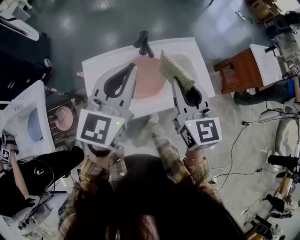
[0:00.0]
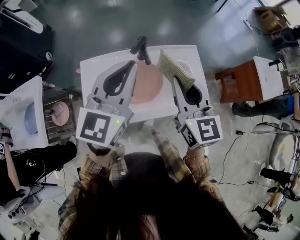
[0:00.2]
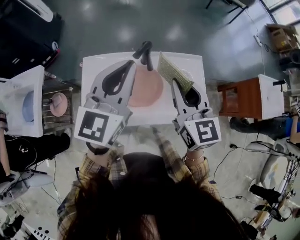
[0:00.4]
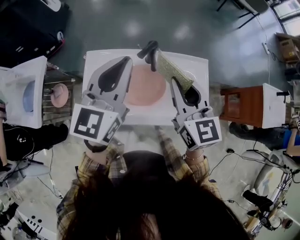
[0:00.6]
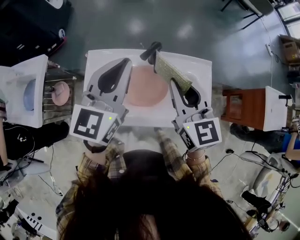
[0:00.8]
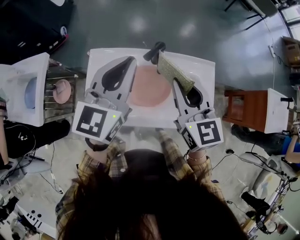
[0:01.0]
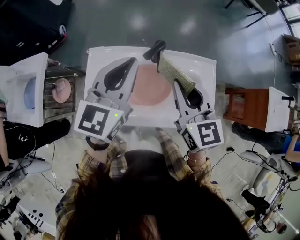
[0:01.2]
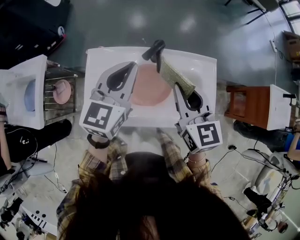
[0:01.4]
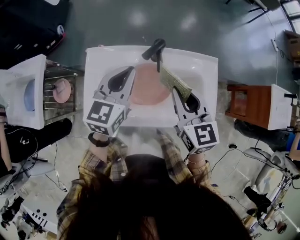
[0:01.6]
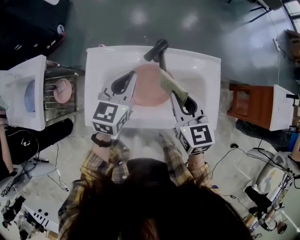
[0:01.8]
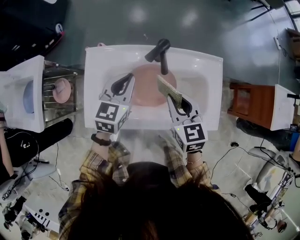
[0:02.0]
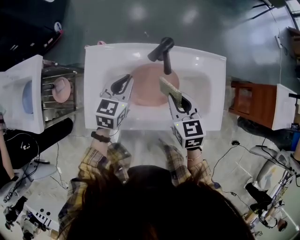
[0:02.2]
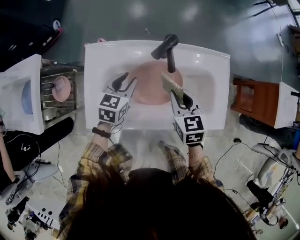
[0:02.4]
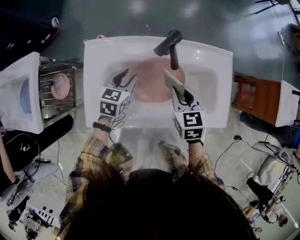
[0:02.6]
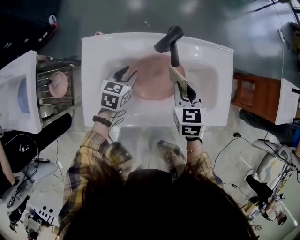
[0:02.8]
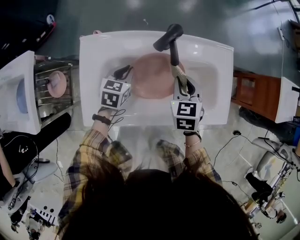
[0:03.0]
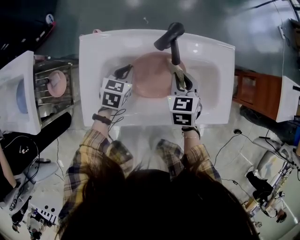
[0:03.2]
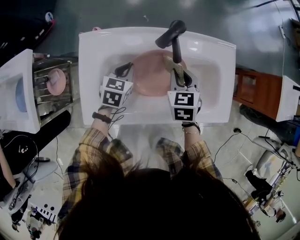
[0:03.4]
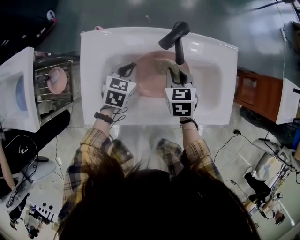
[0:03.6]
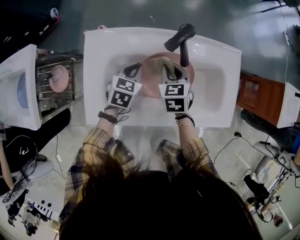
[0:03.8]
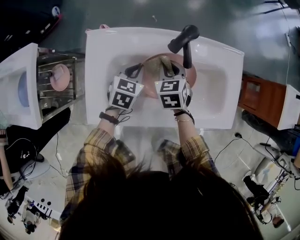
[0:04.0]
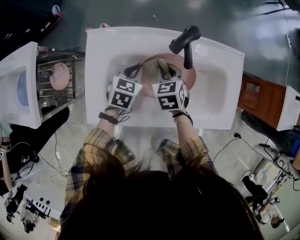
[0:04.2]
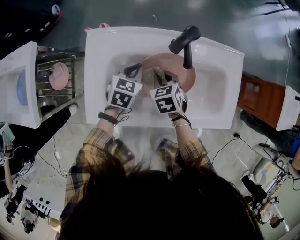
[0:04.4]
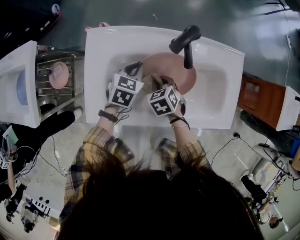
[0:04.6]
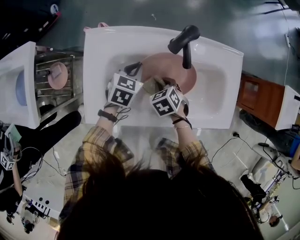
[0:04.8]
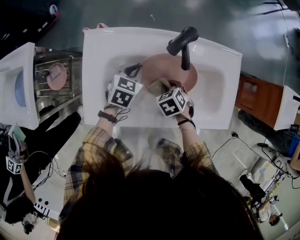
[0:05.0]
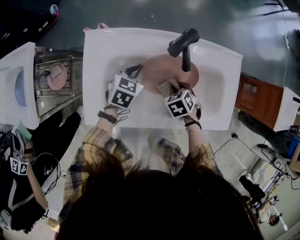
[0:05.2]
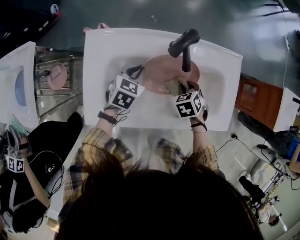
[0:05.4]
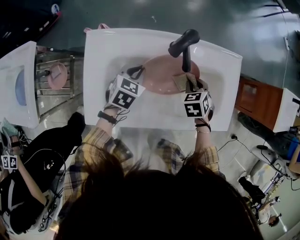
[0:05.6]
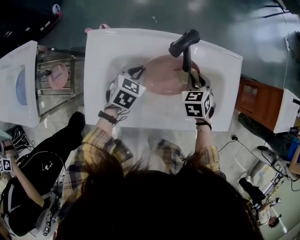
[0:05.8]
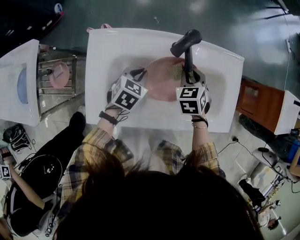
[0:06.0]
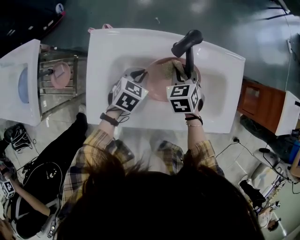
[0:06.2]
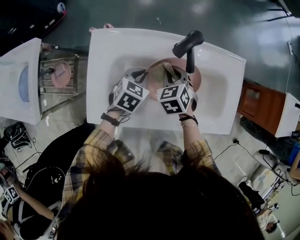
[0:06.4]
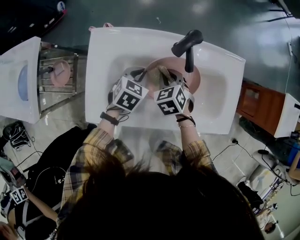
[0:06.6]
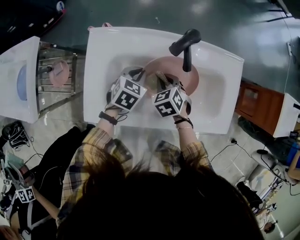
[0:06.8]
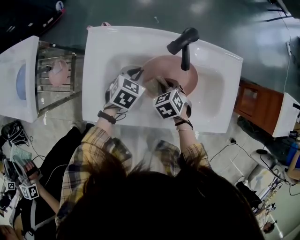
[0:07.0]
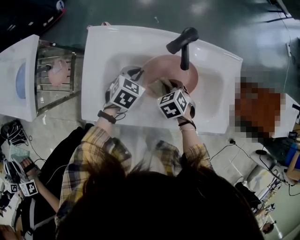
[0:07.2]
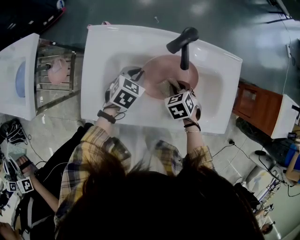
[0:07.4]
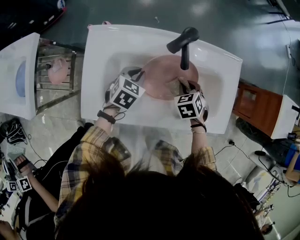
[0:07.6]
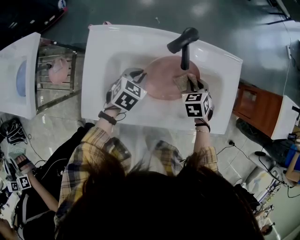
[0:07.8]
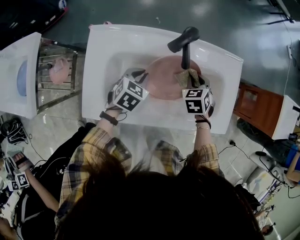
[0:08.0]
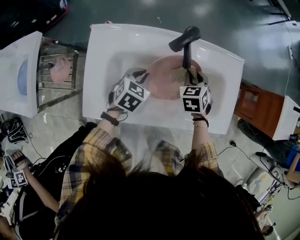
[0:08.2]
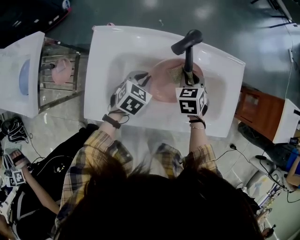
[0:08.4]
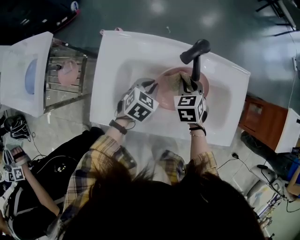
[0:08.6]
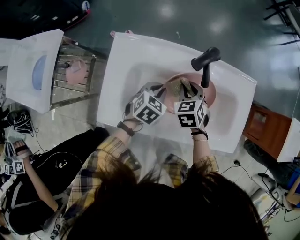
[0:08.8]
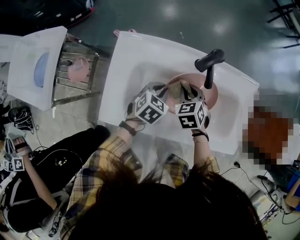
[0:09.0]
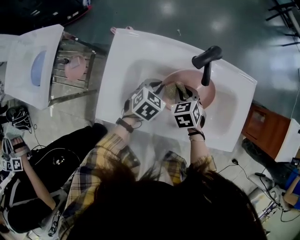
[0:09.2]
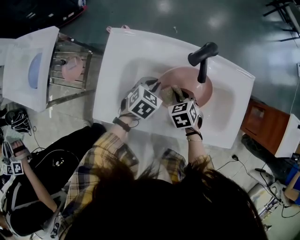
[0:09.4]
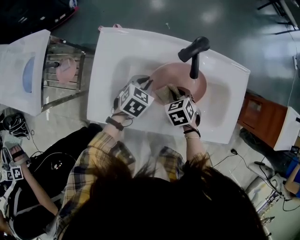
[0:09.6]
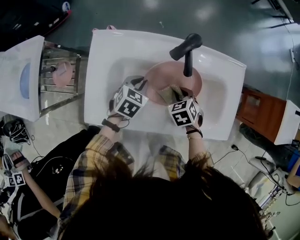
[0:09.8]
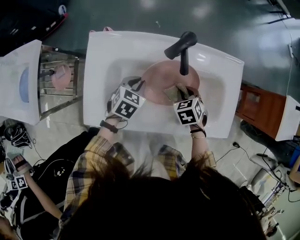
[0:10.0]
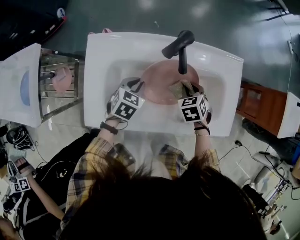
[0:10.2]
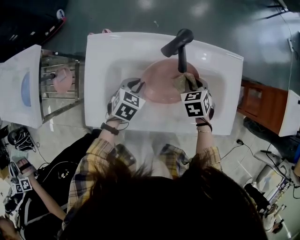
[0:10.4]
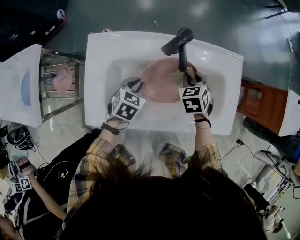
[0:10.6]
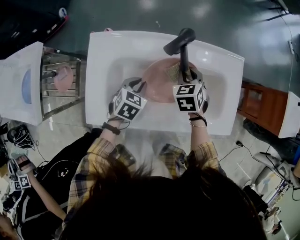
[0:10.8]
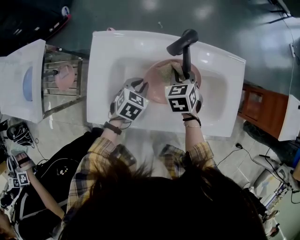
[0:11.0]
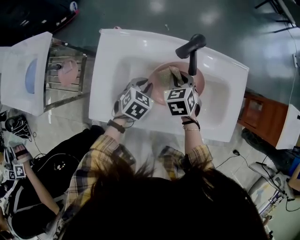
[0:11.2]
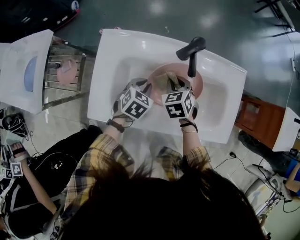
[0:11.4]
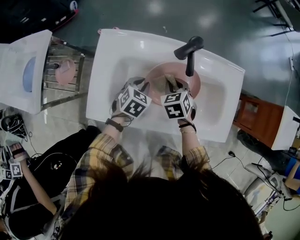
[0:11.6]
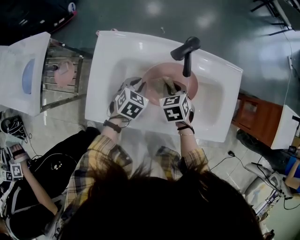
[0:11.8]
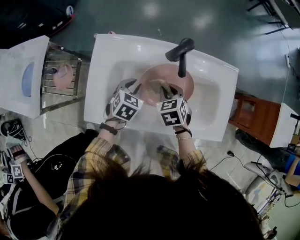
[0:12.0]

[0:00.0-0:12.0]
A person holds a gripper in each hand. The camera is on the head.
0:00.0 to 0:01.6: The left gripper shifts approximately 15 cm downward and forward, and changes its angle by some 20 degrees. Meanwhile the right gripper shifts some 15 cm forward and downward, and rotates approximately 20 degrees.
0:01.6 to 0:03.0: The two grippers go about 20 cm downward. The right gripper rotates about 30 degrees; the left gripper rotates roughly 30 degrees, and opens, then closes once more.
0:03.0 to 0:04.4: The right gripper travels to the left and downward by about 15 cm, and swivels about 20 degrees.
0:04.4 to 0:06.0: The right gripper shifts some 10 cm to the right and forward.
0:06.0 to 0:07.6: The right gripper is displaced downward and backward by some 10 cm, and travels to the left and back again, roughly 10 cm each way.
0:07.6 to 0:09.0: The right gripper moves to the left, approximately 10 cm.
0:09.0 to 0:10.4: The right gripper goes about 10 cm to the right.
0:10.4 to 0:12.0: The right gripper moves to the left, some 10 cm.

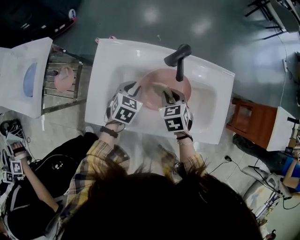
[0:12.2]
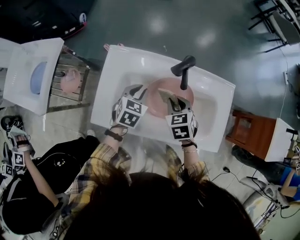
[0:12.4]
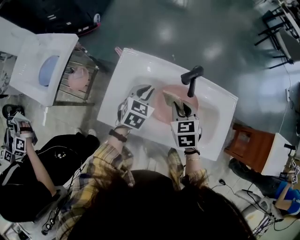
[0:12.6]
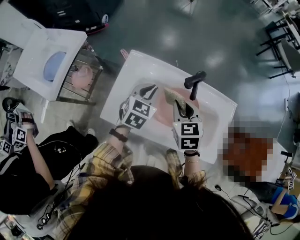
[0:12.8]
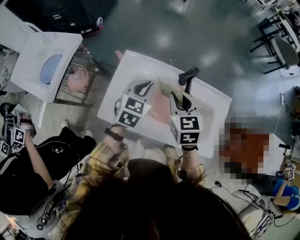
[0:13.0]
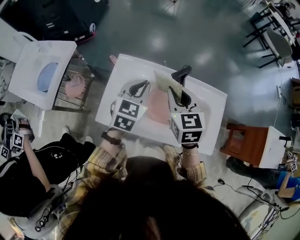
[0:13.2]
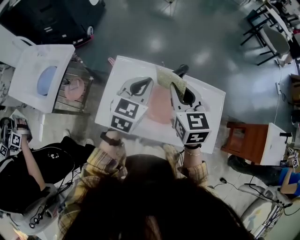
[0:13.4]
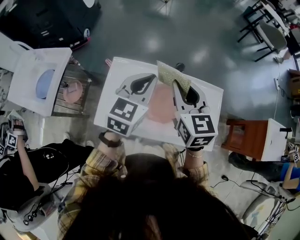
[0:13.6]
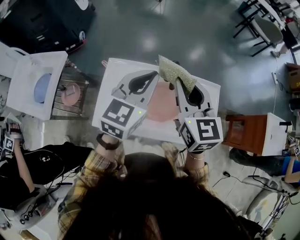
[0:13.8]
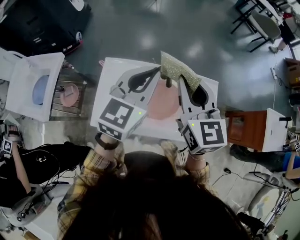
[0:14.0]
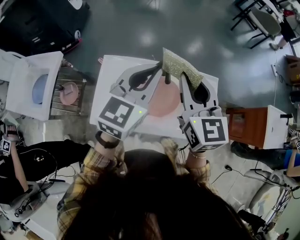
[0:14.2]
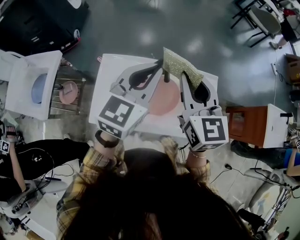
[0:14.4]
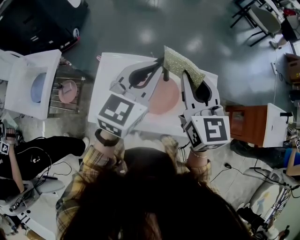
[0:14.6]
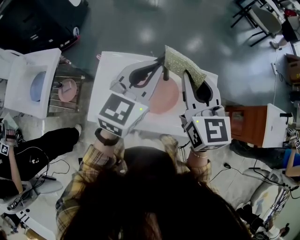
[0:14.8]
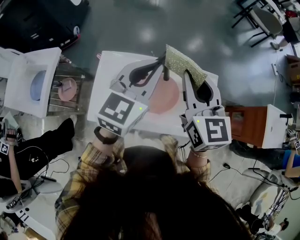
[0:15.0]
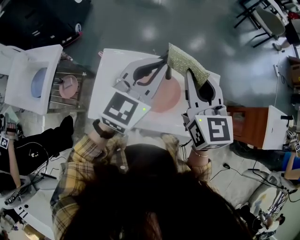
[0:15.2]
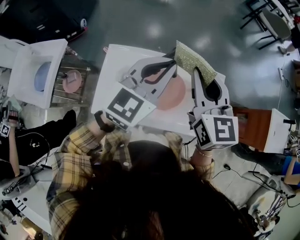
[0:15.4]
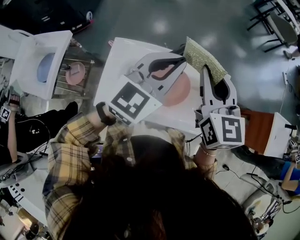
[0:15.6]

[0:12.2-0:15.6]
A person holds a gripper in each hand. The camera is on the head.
0:12.2 to 0:13.8: Both grippers travel together upward, about 30 cm. The left gripper points its fingers roughly 40 degrees further upward. The right gripper tilts its fingers roughly 40 degrees upward.
0:13.8 to 0:15.6: The two grippers go some 10 cm to the right.

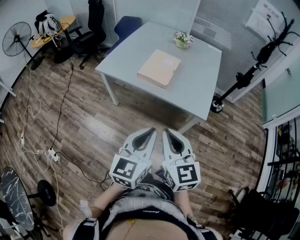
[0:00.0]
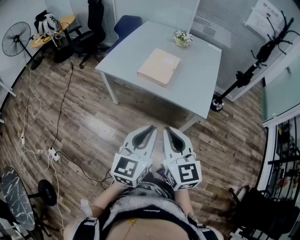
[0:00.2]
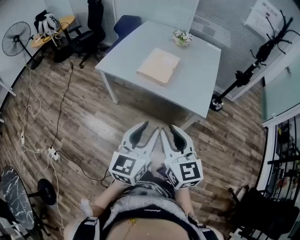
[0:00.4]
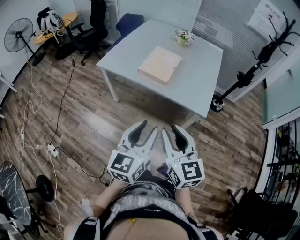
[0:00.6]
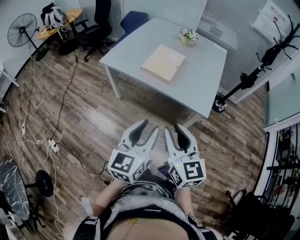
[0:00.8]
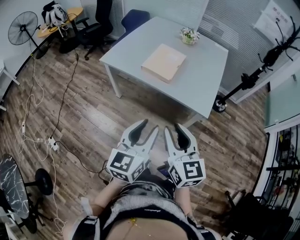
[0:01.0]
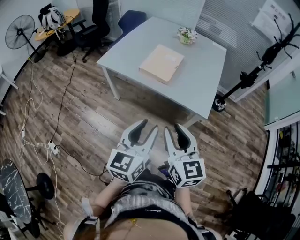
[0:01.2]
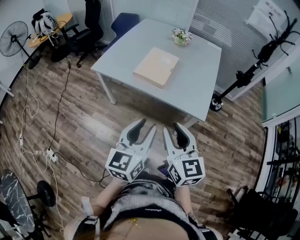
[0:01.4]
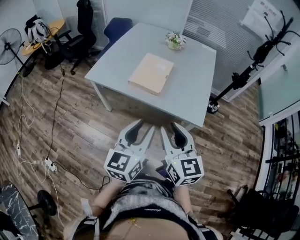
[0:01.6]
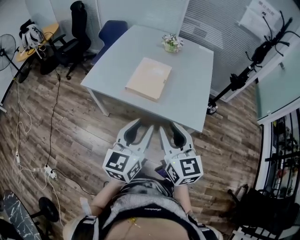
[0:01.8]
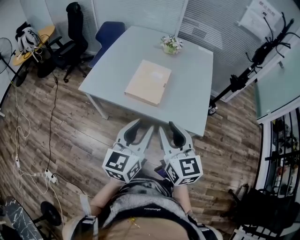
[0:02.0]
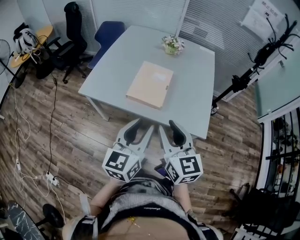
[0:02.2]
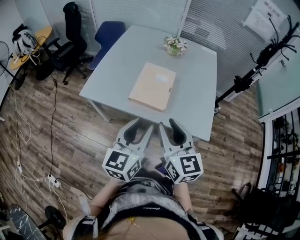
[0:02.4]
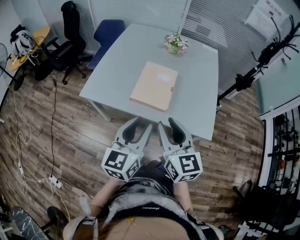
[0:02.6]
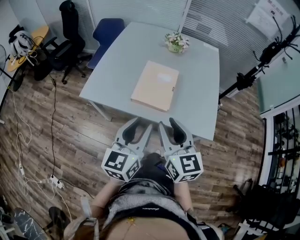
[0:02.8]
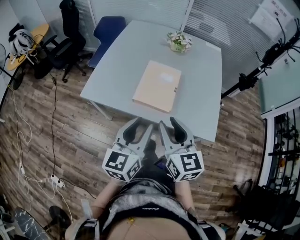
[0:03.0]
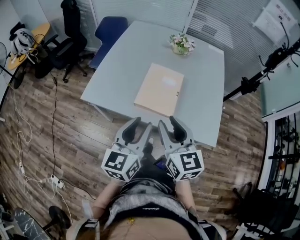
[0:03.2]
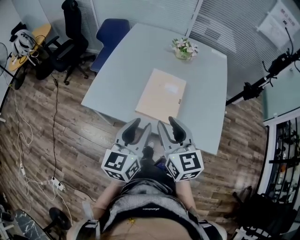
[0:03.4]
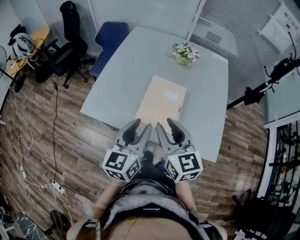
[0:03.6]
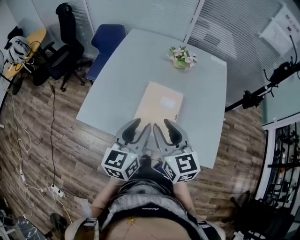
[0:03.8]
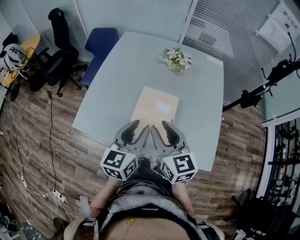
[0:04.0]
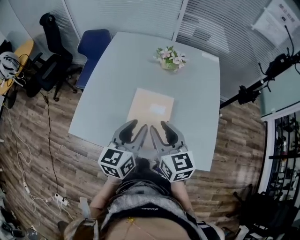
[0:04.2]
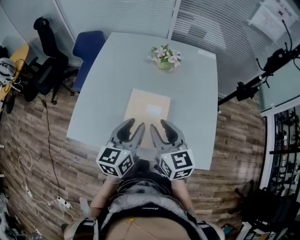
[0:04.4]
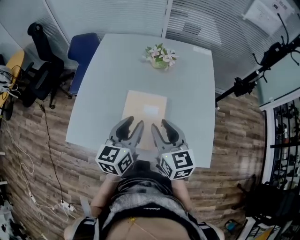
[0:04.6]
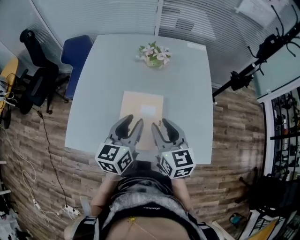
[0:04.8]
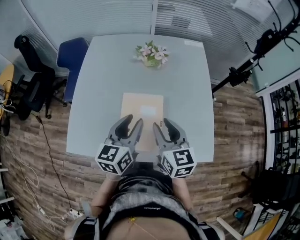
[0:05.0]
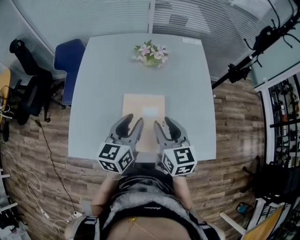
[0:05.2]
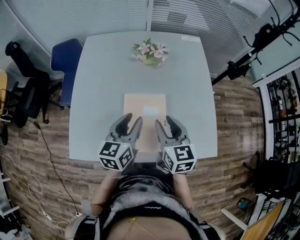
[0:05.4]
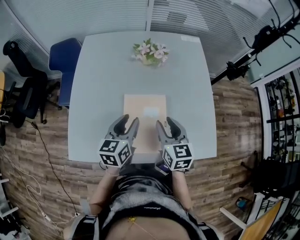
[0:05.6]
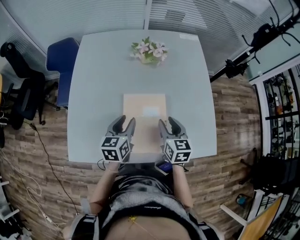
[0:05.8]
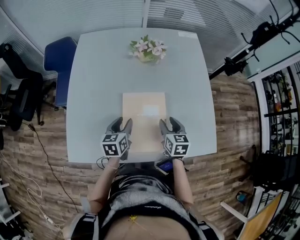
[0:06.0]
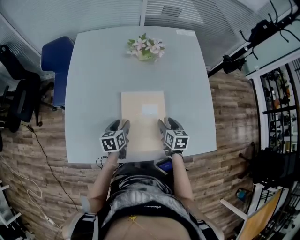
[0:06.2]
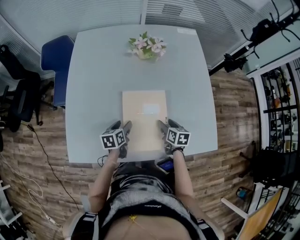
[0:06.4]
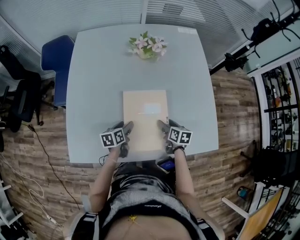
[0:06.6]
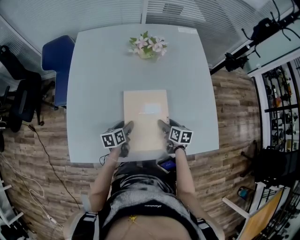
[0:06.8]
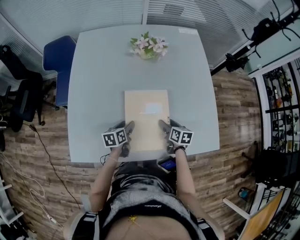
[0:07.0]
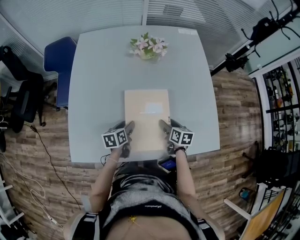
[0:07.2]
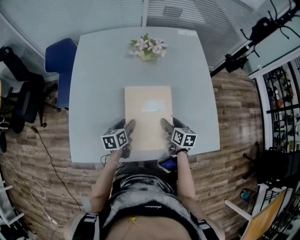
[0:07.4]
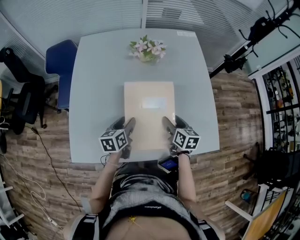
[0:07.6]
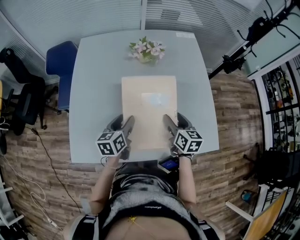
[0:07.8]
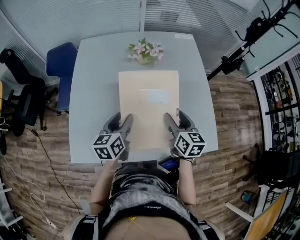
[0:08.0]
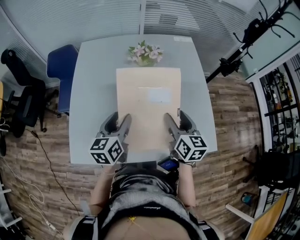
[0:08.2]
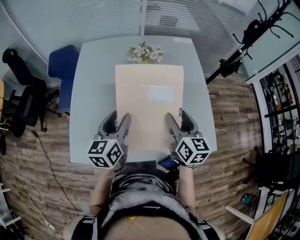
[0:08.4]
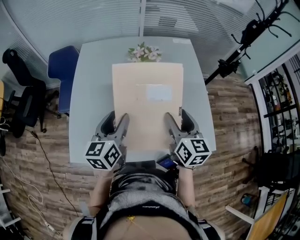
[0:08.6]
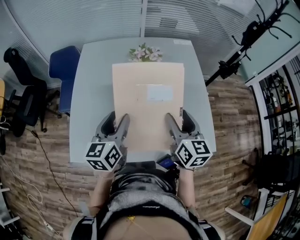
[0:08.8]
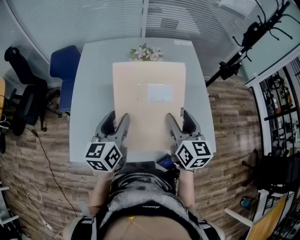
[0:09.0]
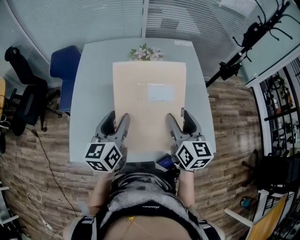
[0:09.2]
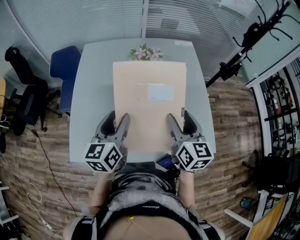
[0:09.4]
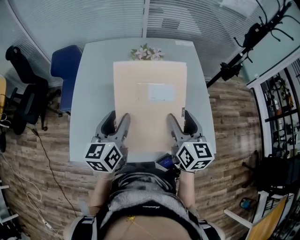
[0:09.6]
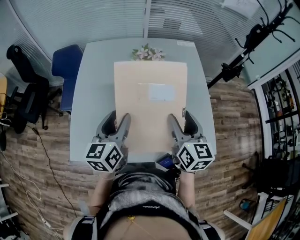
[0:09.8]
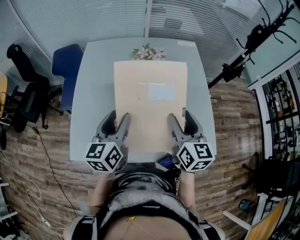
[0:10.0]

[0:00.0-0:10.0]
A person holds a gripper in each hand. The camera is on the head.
0:00.0 to 0:01.4: The right gripper changes place by some 5 cm, and opens up. The left gripper goes about 5 cm forward, and opens.
0:01.4 to 0:02.8: Both grippers travel together forward and to the left, approximately 25 cm.
0:02.8 to 0:04.2: Both grippers move forward, roughly 25 cm.
0:04.2 to 0:05.8: Both grippers move downward and forward, approximately 15 cm. The right gripper changes its angle by about 30 degrees.
0:05.8 to 0:07.2: The grippers both shift downward by about 15 cm. The left gripper rotates roughly 20 degrees. The right gripper turns by some 30 degrees.
0:07.2 to 0:08.6: The grippers both shift upward by roughly 30 cm. The right gripper rotates roughly 30 degrees, while the left gripper turns by some 40 degrees.
0:08.6 to 0:10.0: There are only small adjustments of the grippers.
